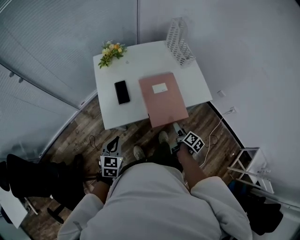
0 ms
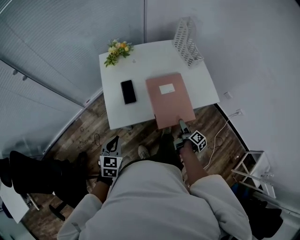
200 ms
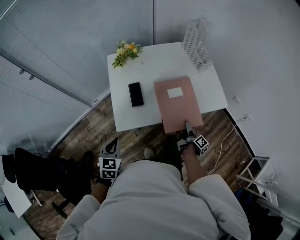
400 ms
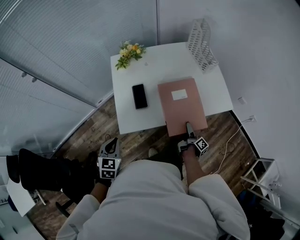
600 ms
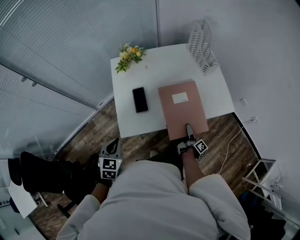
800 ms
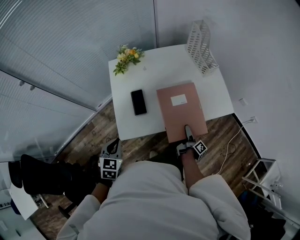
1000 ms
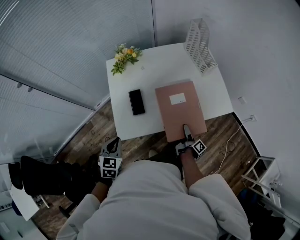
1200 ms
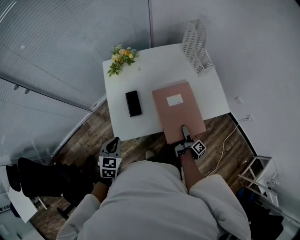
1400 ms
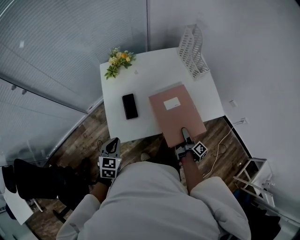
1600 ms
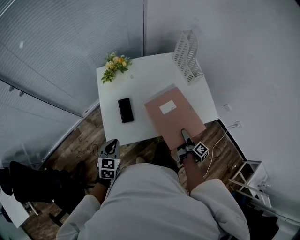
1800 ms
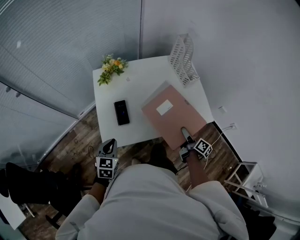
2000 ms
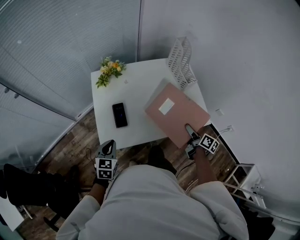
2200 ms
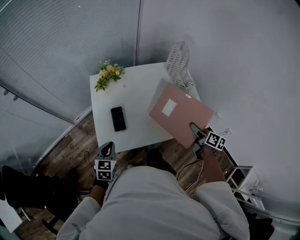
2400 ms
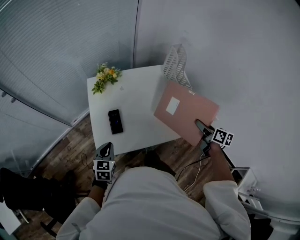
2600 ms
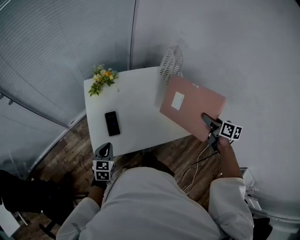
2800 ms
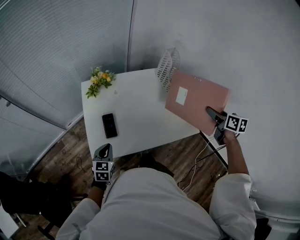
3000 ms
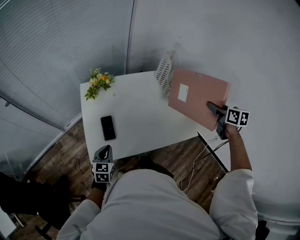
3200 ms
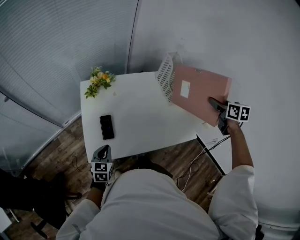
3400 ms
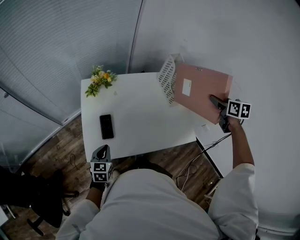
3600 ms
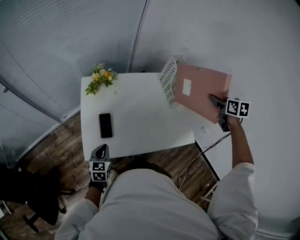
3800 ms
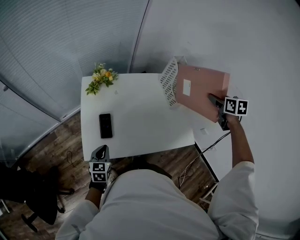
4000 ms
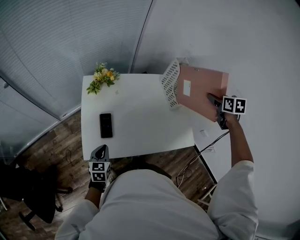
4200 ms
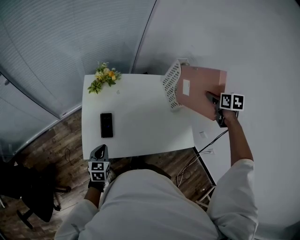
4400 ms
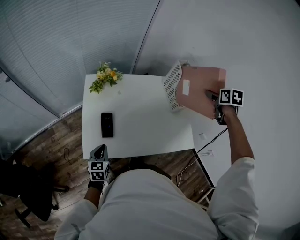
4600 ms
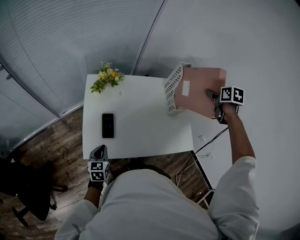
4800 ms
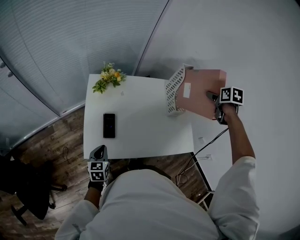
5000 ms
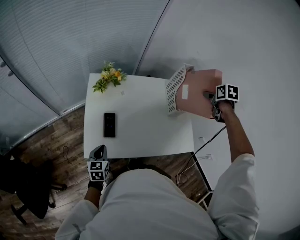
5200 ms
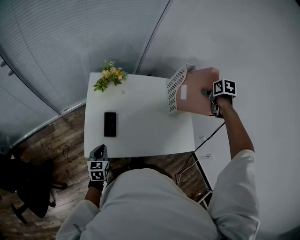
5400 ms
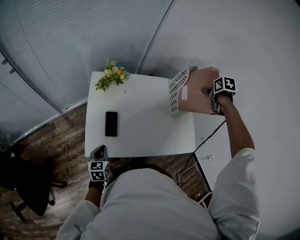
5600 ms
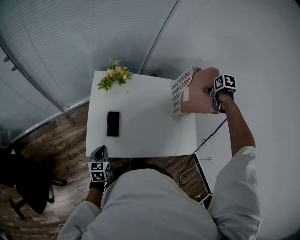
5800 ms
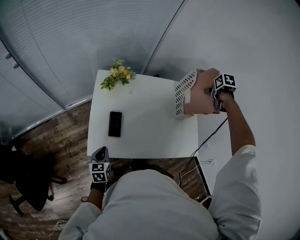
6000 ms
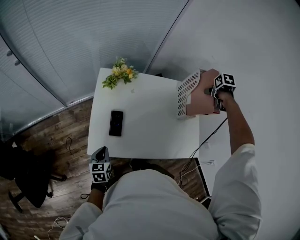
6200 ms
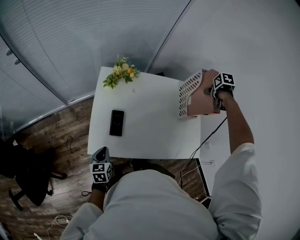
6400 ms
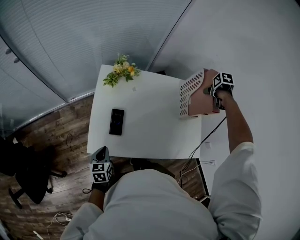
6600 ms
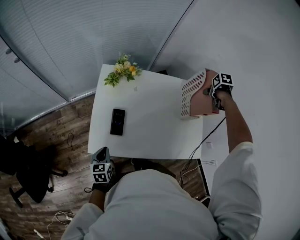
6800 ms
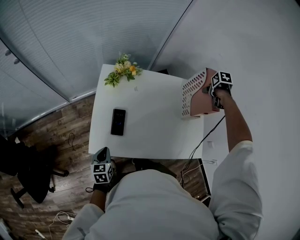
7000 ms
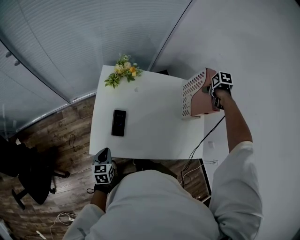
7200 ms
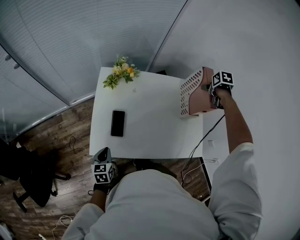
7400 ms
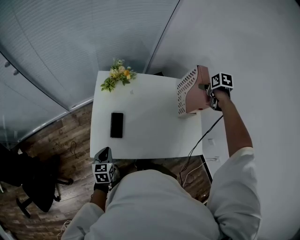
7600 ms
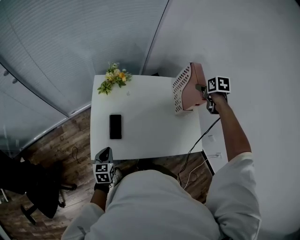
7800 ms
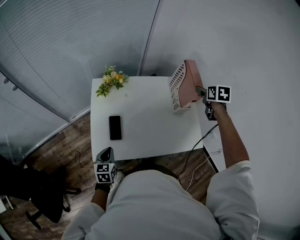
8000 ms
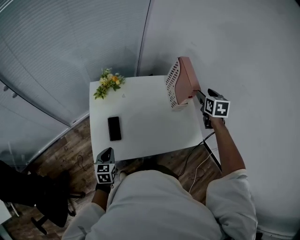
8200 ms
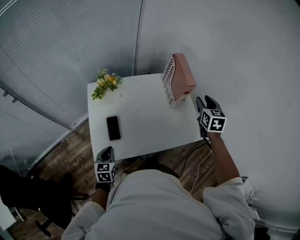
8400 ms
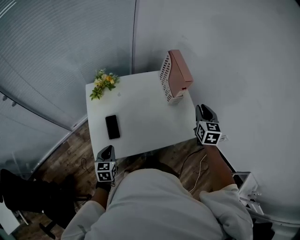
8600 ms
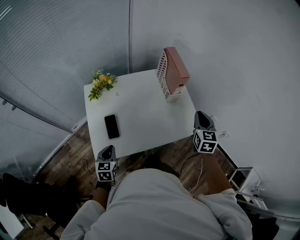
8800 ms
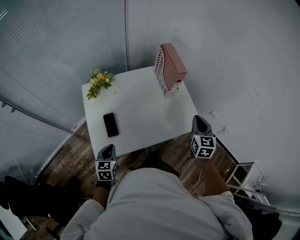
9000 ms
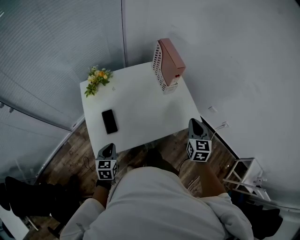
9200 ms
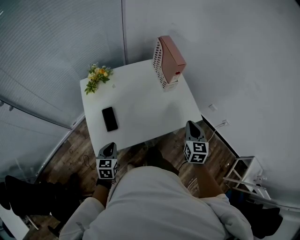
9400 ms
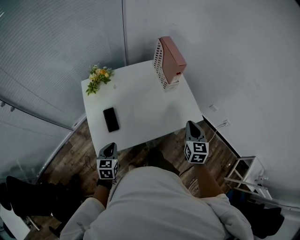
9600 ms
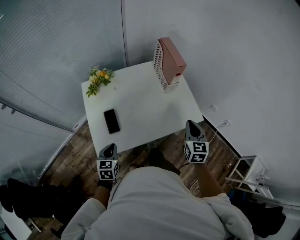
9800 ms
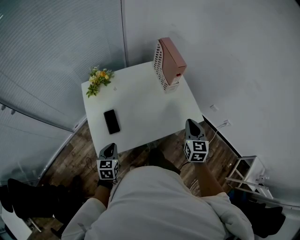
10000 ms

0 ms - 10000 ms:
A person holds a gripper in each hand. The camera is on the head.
0 ms - 1400 ms: The right gripper moves forward and downward, approximately 10 cm, and turns by roughly 30 degrees. The left gripper heads forward and to the left, covering roughly 10 cm.
1400 ms - 2800 ms: The right gripper moves upward, to the right and forward, some 40 cm, and rotates around the line of its fingers by approximately 60 degrees, counterclockwise from behind, while the left gripper travels forward and to the right by some 10 cm.
2800 ms - 4200 ms: The right gripper is displaced forward and upward by about 20 cm, and swivels some 30 degrees.
4200 ms - 5800 ms: The right gripper moves forward, to the left and downward, about 10 cm, and changes its angle by roughly 20 degrees; the left gripper shifts by roughly 5 cm.
5800 ms - 7200 ms: The right gripper is displaced downward by some 10 cm.
7200 ms - 8600 ms: The left gripper travels upward by some 5 cm, and rotates about 20 degrees. The right gripper ends up roughly 30 cm from where it was, tilts its fingers approximately 50 degrees upward, and closes.
8600 ms - 10000 ms: The right gripper goes some 15 cm backward and downward.

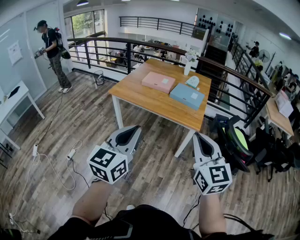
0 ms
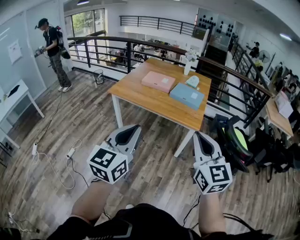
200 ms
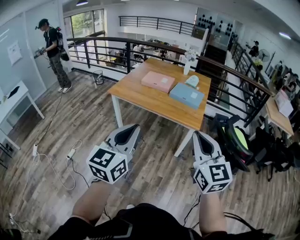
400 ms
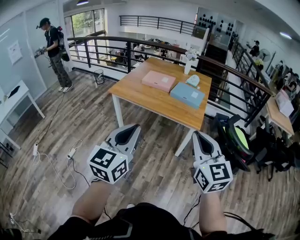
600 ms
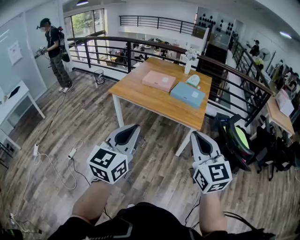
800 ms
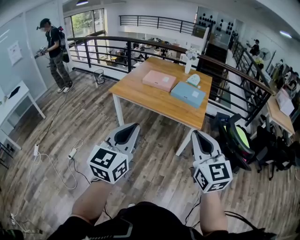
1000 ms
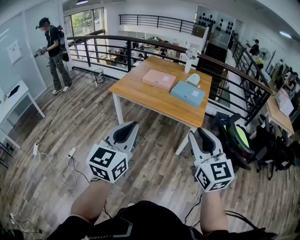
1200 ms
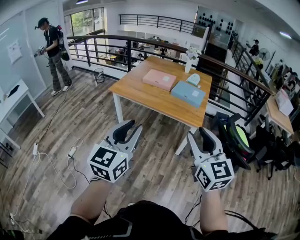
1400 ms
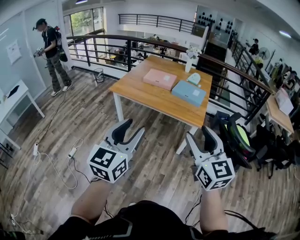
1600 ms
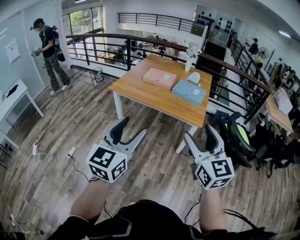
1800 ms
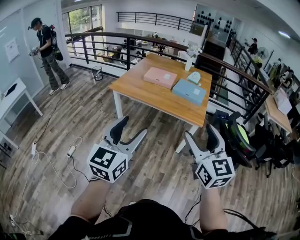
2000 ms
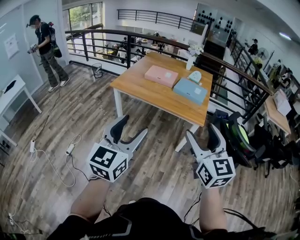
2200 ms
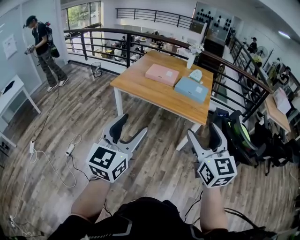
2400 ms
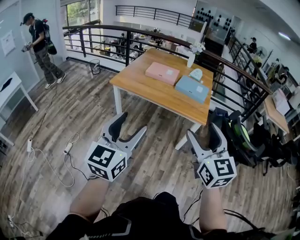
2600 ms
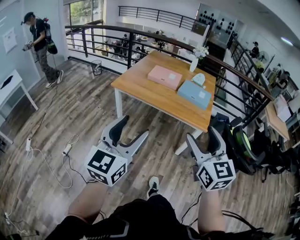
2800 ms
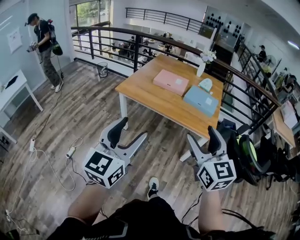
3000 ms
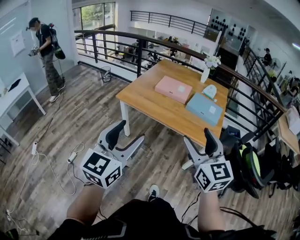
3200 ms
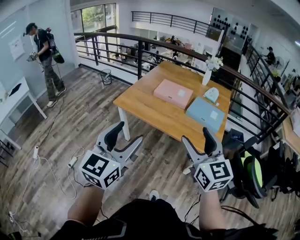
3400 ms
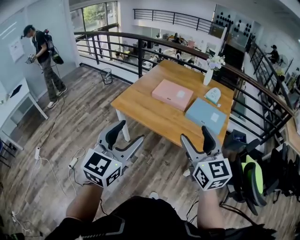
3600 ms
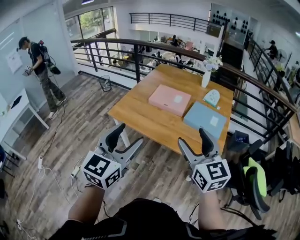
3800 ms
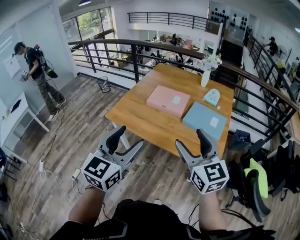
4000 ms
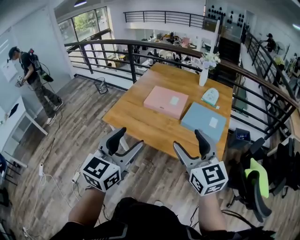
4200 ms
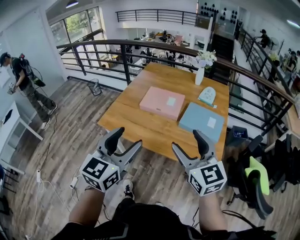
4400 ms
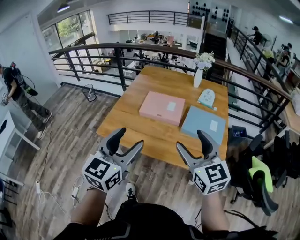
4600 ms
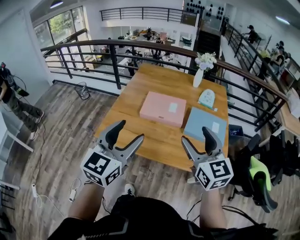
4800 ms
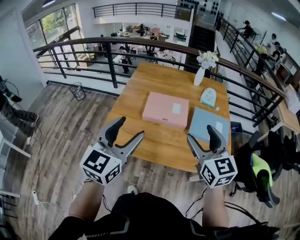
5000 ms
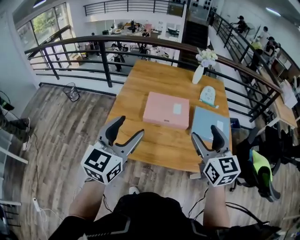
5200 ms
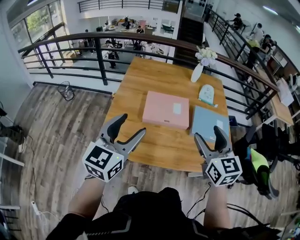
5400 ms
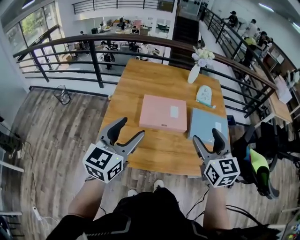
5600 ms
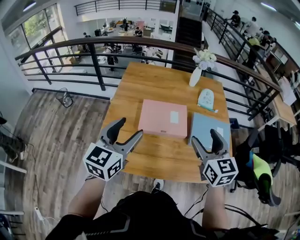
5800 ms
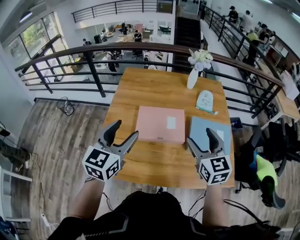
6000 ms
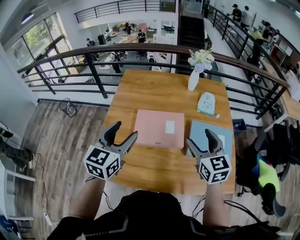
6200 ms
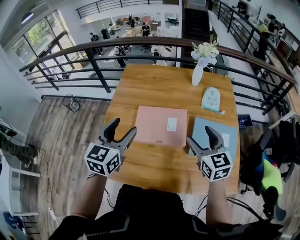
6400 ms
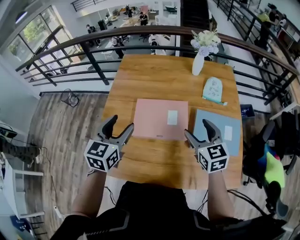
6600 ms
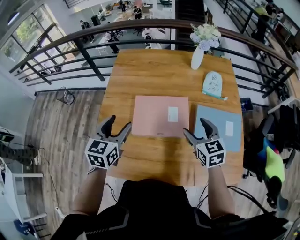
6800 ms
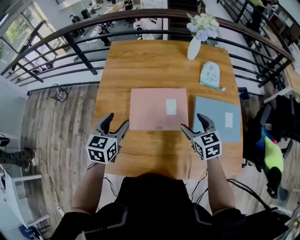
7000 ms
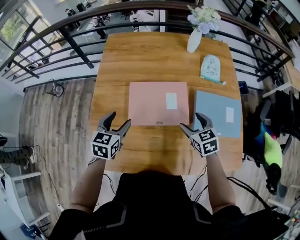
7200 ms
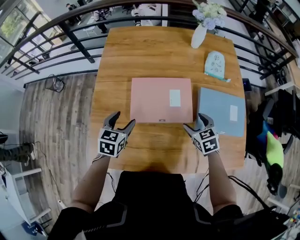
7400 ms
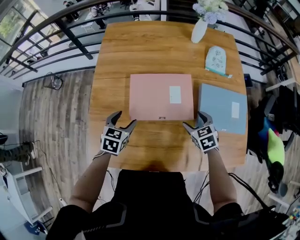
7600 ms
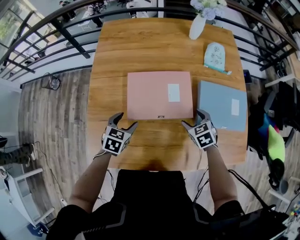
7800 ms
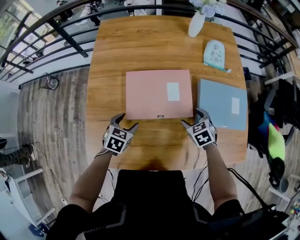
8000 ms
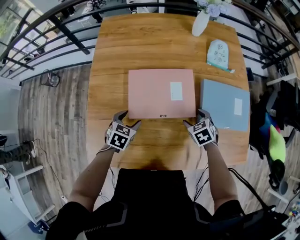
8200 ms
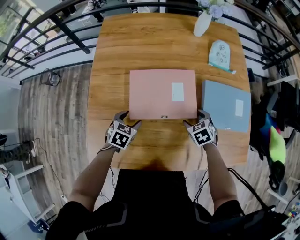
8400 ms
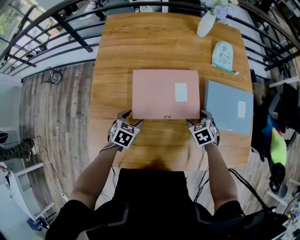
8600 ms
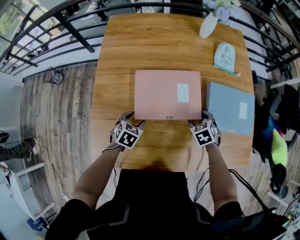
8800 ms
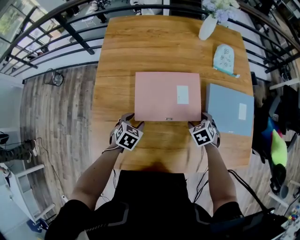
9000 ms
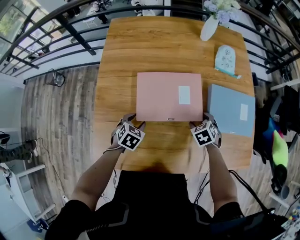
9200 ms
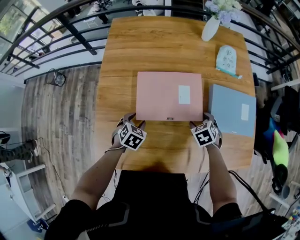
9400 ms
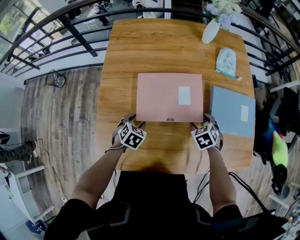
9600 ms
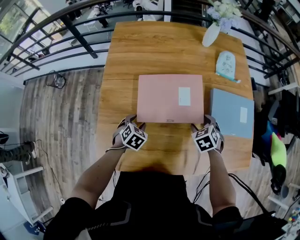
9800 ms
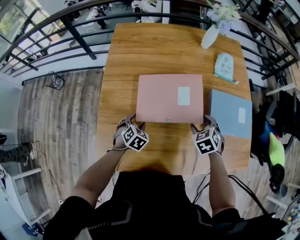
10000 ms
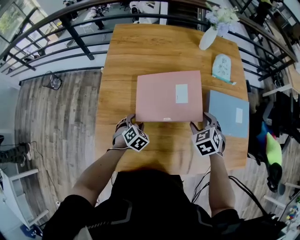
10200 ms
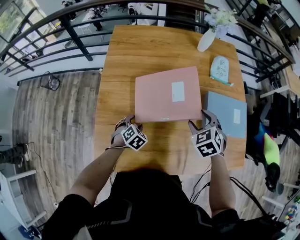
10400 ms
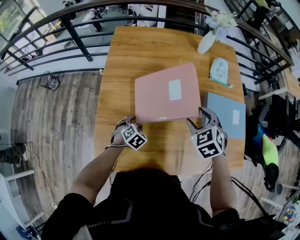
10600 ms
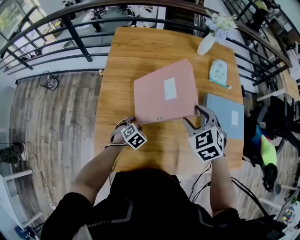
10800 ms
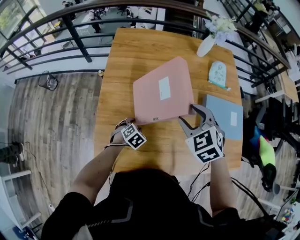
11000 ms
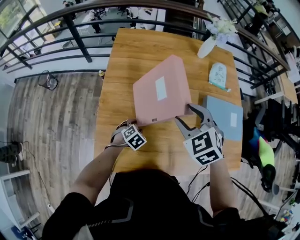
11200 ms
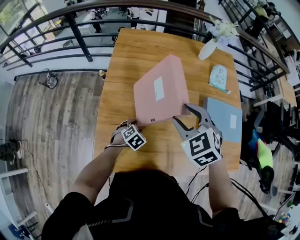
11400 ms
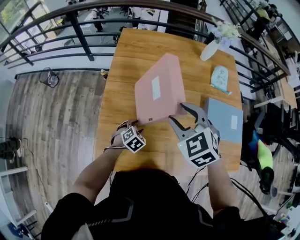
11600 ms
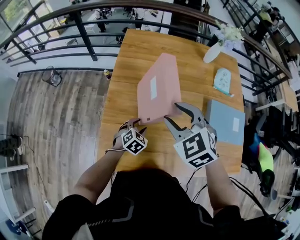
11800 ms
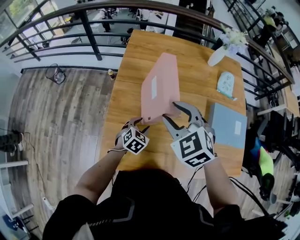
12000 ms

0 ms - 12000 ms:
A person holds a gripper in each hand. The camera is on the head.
0 ms - 1600 ms: The right gripper opens up; the left gripper opens up.
1600 ms - 3000 ms: The right gripper shifts about 15 cm forward and to the left. The left gripper shifts about 15 cm to the left and forward.
3000 ms - 4400 ms: The grippers both shift forward by approximately 30 cm.
4400 ms - 6000 ms: The left gripper goes about 35 cm forward and to the left; the right gripper is displaced forward by approximately 25 cm, and turns by roughly 30 degrees.
6000 ms - 7600 ms: The two grippers go about 30 cm downward. The right gripper points its fingers approximately 40 degrees further downward. The left gripper tips its fingers downward by approximately 30 degrees.
7600 ms - 9000 ms: The grippers both shift downward by roughly 5 cm.
9000 ms - 10400 ms: The right gripper is displaced upward by some 15 cm.
10400 ms - 12000 ms: The left gripper heads upward, covering some 5 cm, while the right gripper travels to the left and upward by roughly 25 cm, and turns by about 30 degrees.

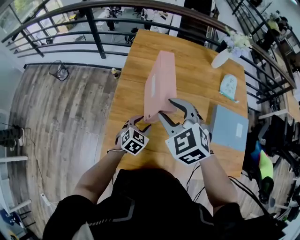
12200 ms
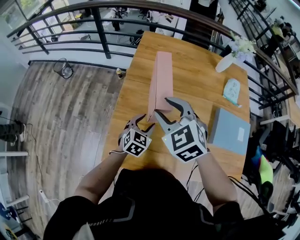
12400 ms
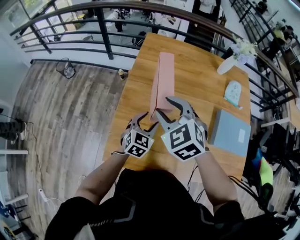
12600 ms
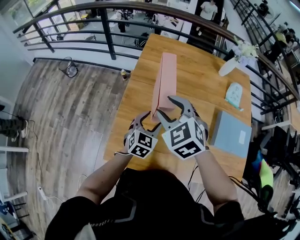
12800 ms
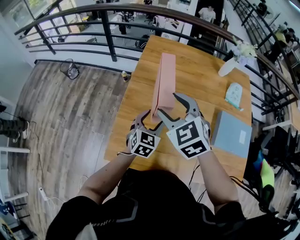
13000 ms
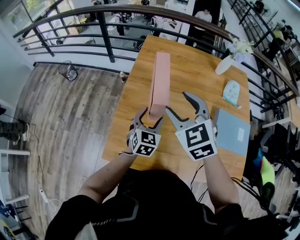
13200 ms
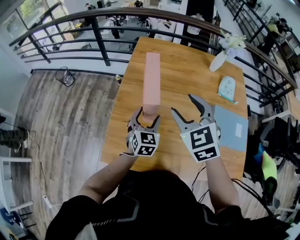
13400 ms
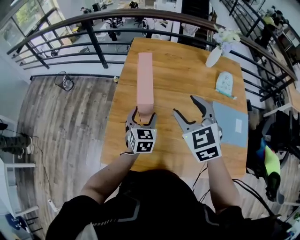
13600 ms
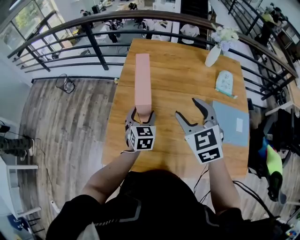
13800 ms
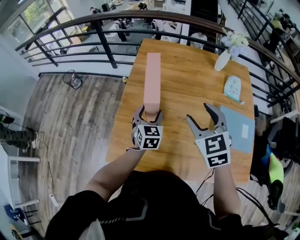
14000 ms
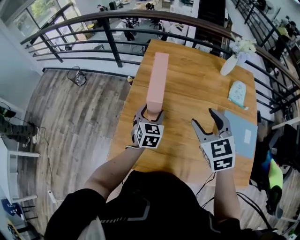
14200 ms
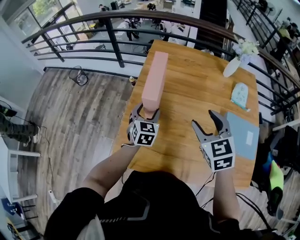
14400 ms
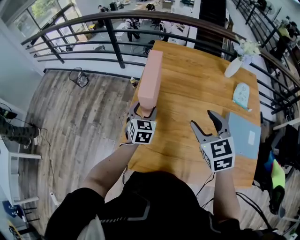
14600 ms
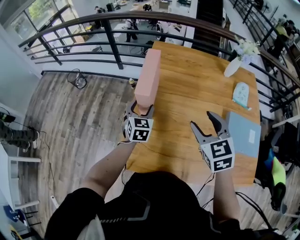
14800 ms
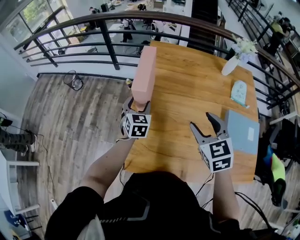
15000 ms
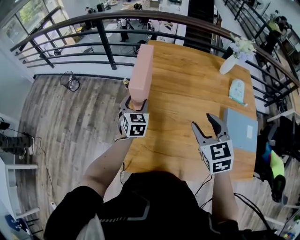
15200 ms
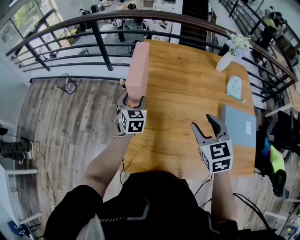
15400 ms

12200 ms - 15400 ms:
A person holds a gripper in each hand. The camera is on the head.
12200 ms - 13800 ms: The right gripper travels to the right by approximately 10 cm. Meanwhile the left gripper travels upward by some 10 cm, and turns by approximately 30 degrees.
13800 ms - 15400 ms: The left gripper moves to the left and forward, some 20 cm. Meanwhile the right gripper shifts by roughly 5 cm.
